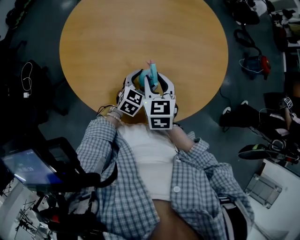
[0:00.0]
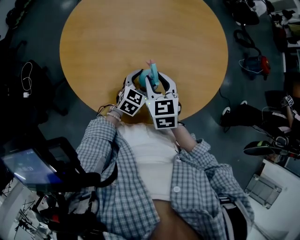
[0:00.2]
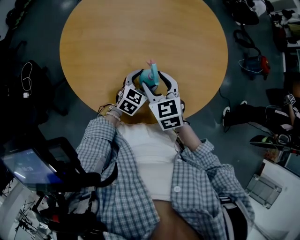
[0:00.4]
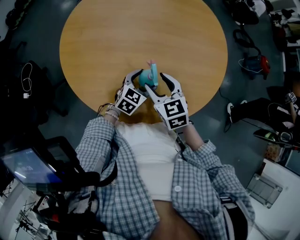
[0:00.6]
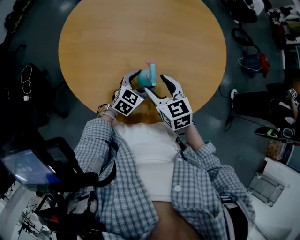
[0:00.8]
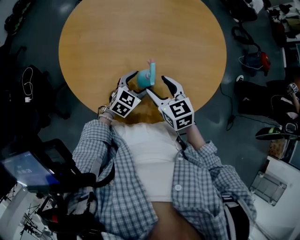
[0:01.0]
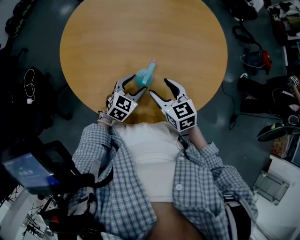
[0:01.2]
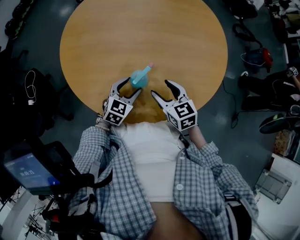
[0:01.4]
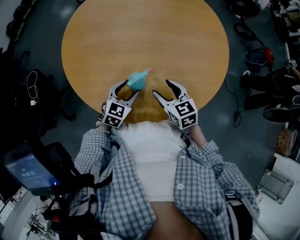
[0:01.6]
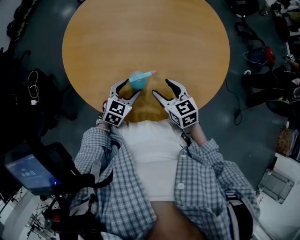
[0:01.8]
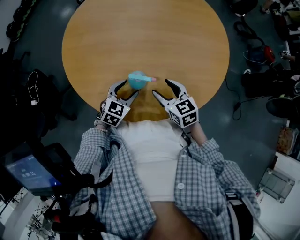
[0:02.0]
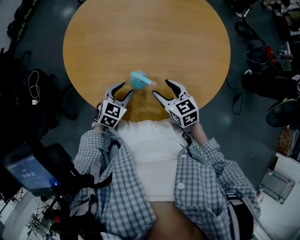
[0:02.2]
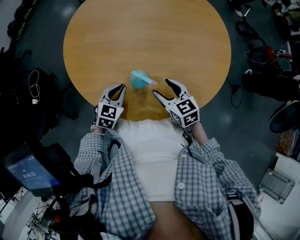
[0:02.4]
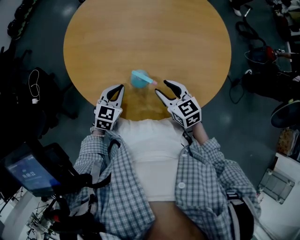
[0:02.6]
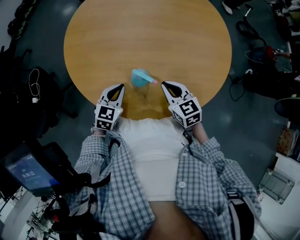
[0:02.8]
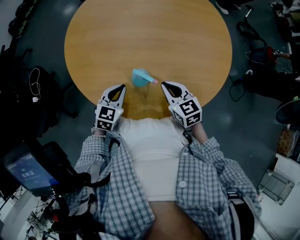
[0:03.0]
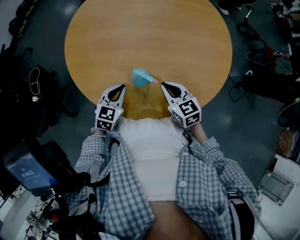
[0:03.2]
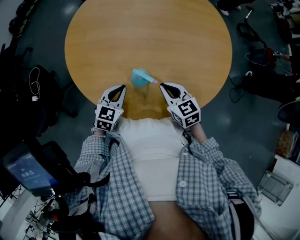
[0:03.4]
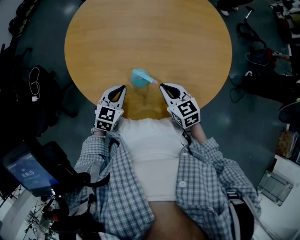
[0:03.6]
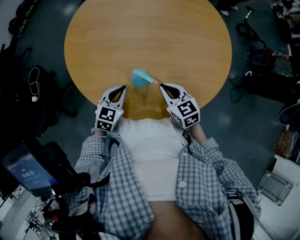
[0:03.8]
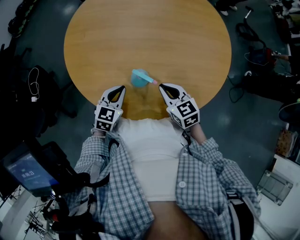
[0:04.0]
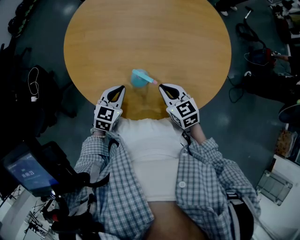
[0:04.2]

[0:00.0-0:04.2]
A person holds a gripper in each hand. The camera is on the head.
0:00.0 to 0:01.4: The left gripper shifts roughly 5 cm to the left, while the right gripper moves about 5 cm, and opens up.
0:01.4 to 0:02.8: The left gripper travels to the left by about 5 cm, and closes its fingers. Meanwhile the right gripper closes up.
0:02.8 to 0:04.2: Both grippers stay about where they are.

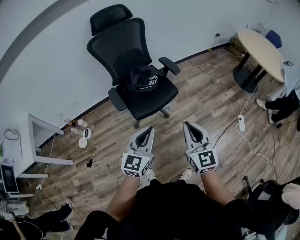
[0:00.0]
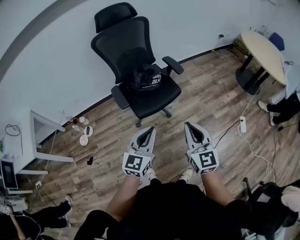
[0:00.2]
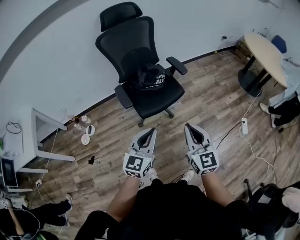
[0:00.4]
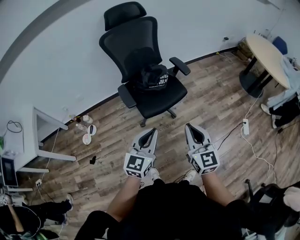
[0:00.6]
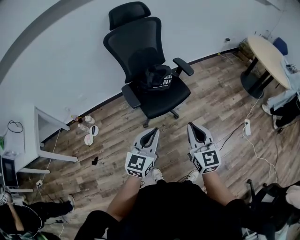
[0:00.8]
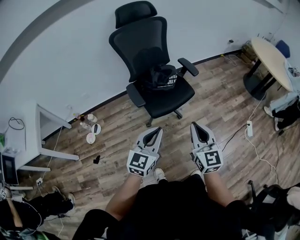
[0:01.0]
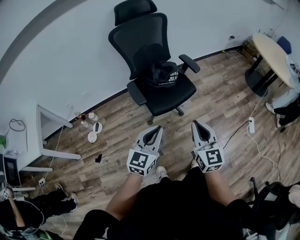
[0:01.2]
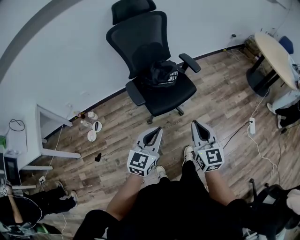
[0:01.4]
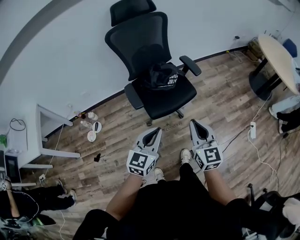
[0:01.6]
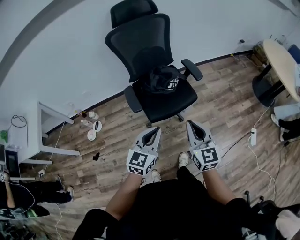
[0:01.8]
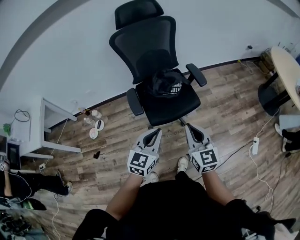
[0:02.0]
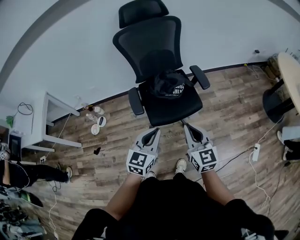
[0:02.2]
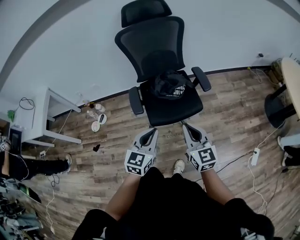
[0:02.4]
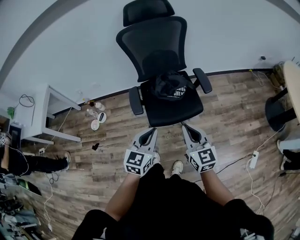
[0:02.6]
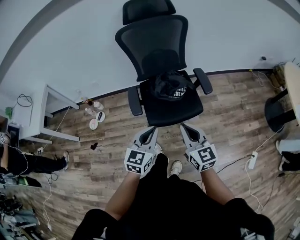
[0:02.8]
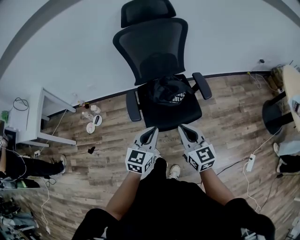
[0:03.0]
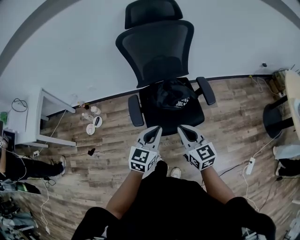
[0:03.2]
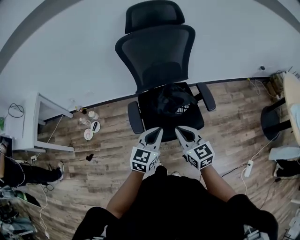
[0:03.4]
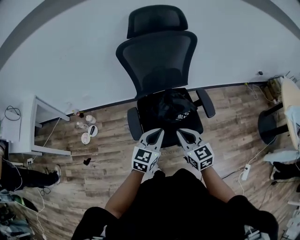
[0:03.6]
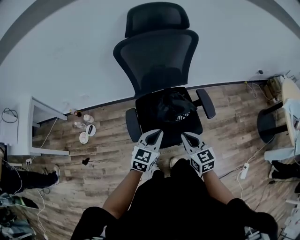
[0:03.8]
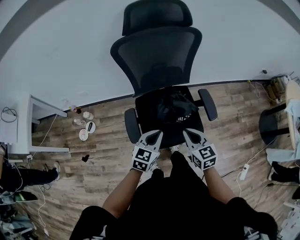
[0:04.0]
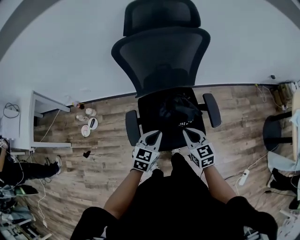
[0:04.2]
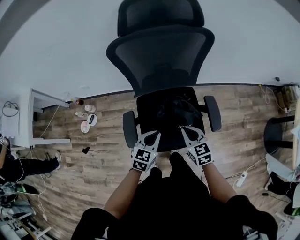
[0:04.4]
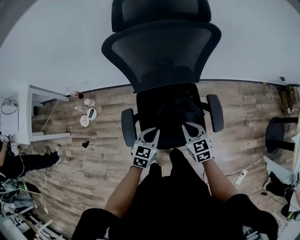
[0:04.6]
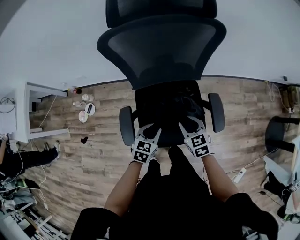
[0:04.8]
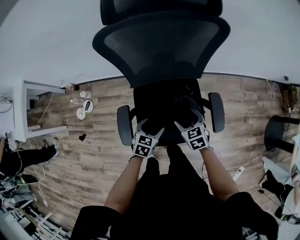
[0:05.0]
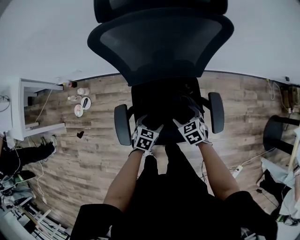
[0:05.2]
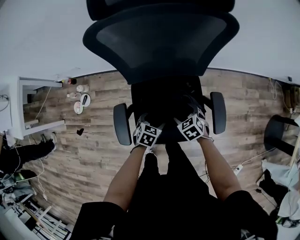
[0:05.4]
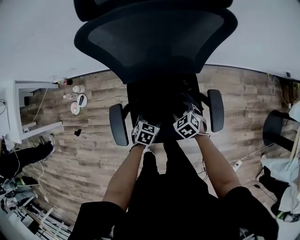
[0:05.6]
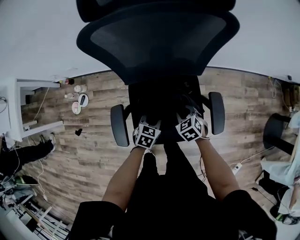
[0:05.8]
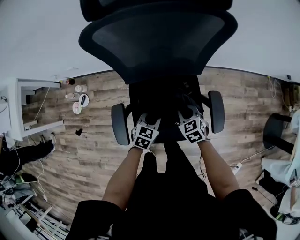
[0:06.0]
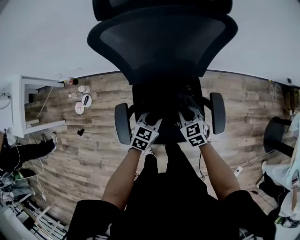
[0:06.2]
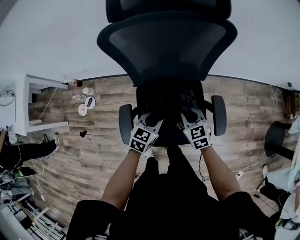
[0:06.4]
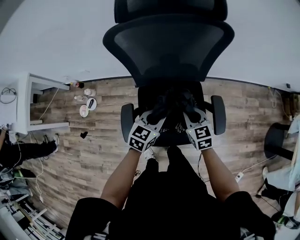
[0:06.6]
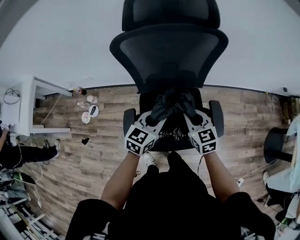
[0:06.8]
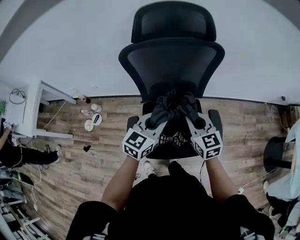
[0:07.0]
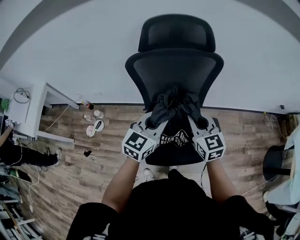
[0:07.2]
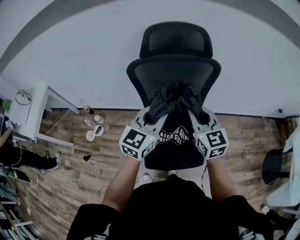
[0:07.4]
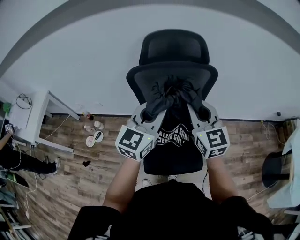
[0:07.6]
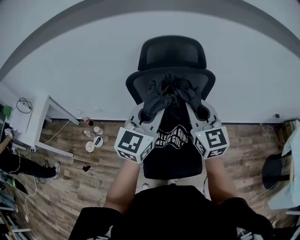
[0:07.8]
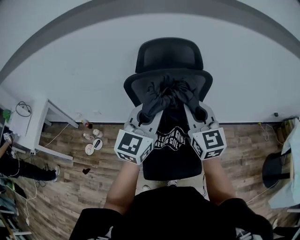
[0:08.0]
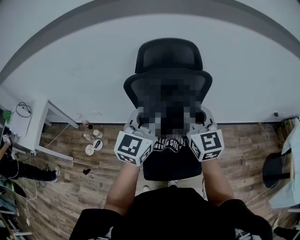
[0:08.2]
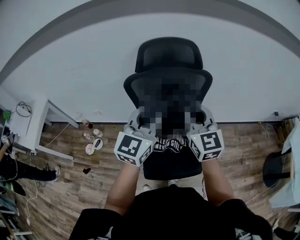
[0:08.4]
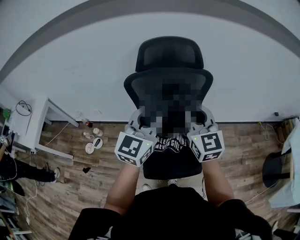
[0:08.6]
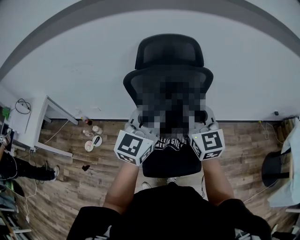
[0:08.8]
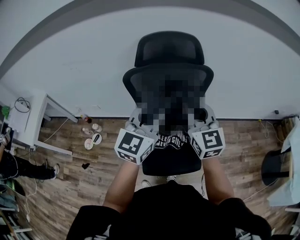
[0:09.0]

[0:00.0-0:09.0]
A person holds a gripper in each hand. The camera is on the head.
0:00.0 to 0:01.6: The left gripper shifts some 5 cm to the left. The right gripper shifts about 10 cm to the left and forward.
0:01.6 to 0:03.0: The grippers both shift forward by about 15 cm. The right gripper rotates some 30 degrees.
0:03.0 to 0:04.4: The grippers both shift forward and downward by about 25 cm. The right gripper swivels about 20 degrees.
0:04.4 to 0:06.0: Both grippers travel together downward and forward, about 15 cm. The right gripper swivels roughly 20 degrees, and opens, then closes once more; the left gripper opens and closes again.
0:06.0 to 0:07.6: The grippers both shift upward by some 40 cm. The right gripper tips its fingers upward by approximately 50 degrees. Meanwhile the left gripper tilts its fingers about 40 degrees upward.
0:07.6 to 0:09.0: The grippers make only small movements.

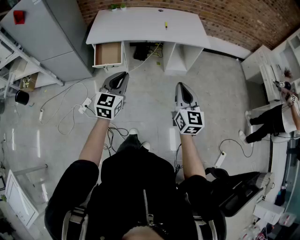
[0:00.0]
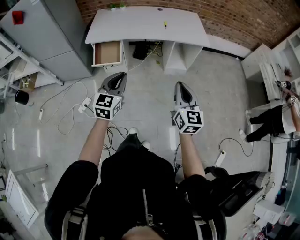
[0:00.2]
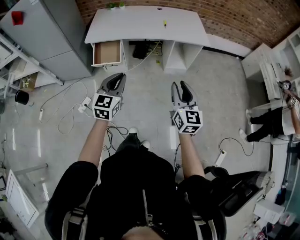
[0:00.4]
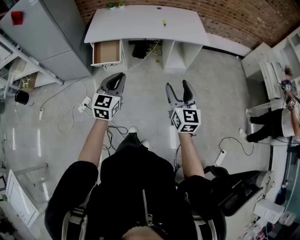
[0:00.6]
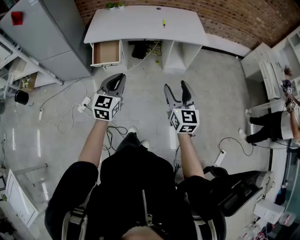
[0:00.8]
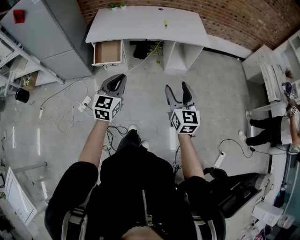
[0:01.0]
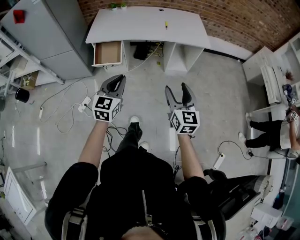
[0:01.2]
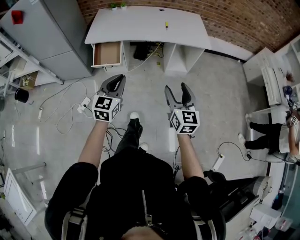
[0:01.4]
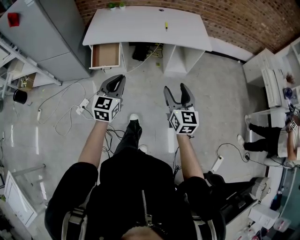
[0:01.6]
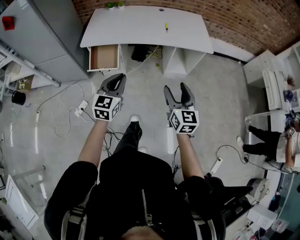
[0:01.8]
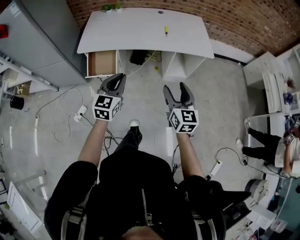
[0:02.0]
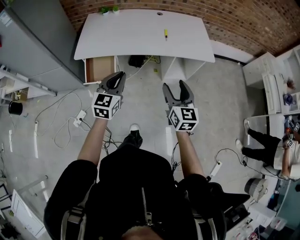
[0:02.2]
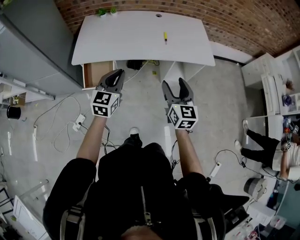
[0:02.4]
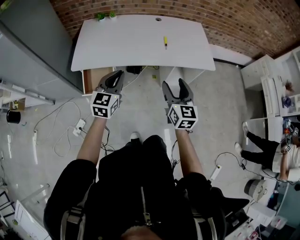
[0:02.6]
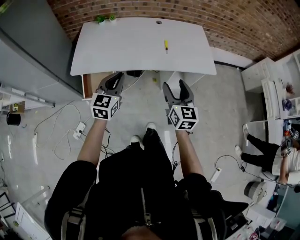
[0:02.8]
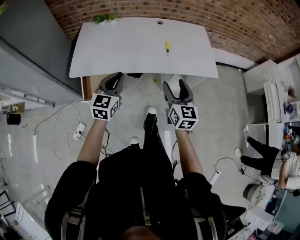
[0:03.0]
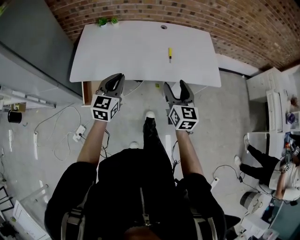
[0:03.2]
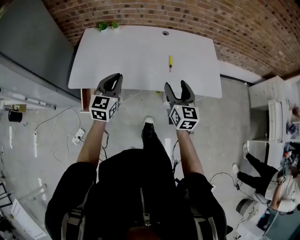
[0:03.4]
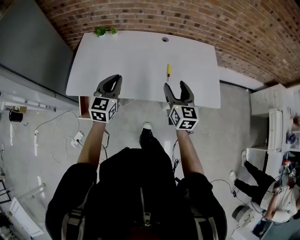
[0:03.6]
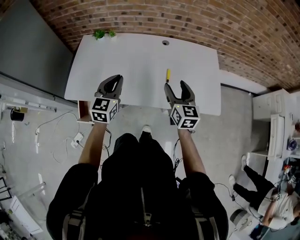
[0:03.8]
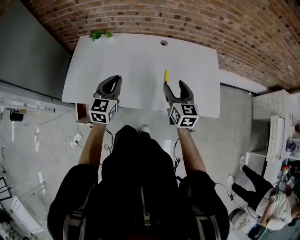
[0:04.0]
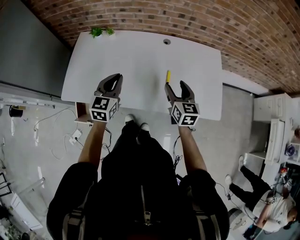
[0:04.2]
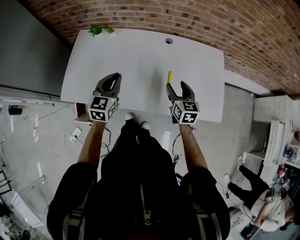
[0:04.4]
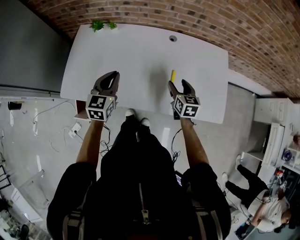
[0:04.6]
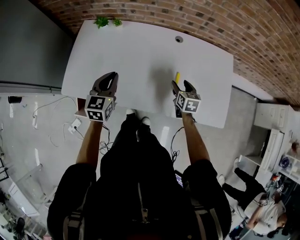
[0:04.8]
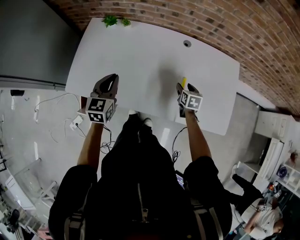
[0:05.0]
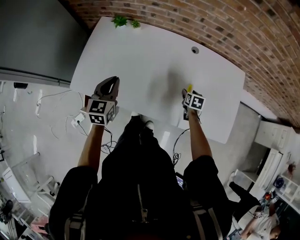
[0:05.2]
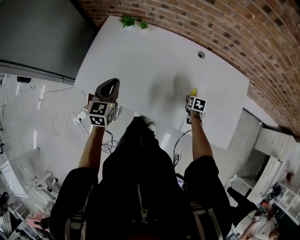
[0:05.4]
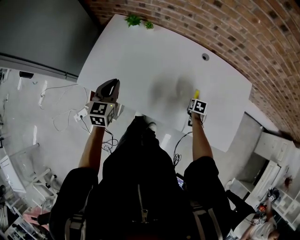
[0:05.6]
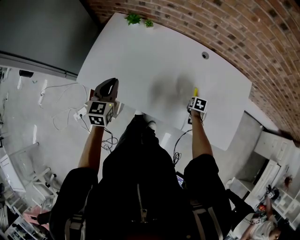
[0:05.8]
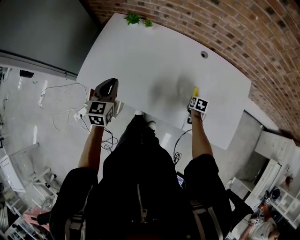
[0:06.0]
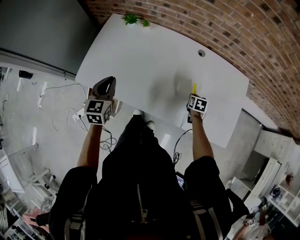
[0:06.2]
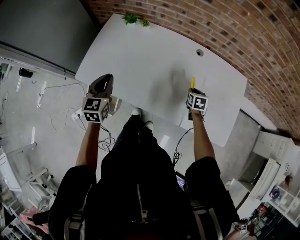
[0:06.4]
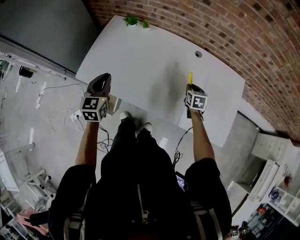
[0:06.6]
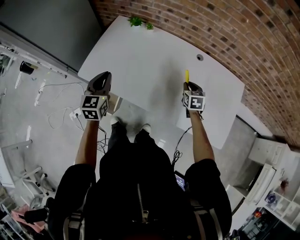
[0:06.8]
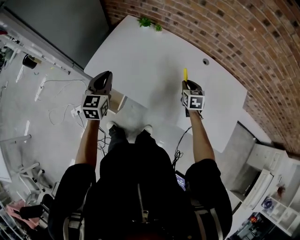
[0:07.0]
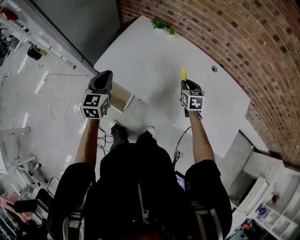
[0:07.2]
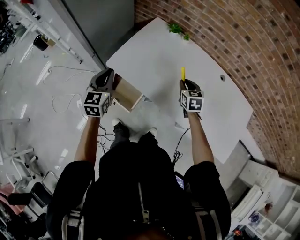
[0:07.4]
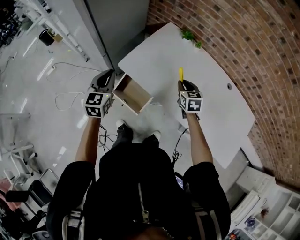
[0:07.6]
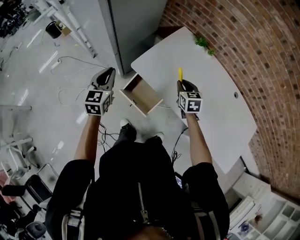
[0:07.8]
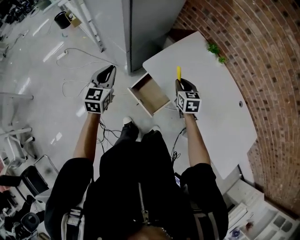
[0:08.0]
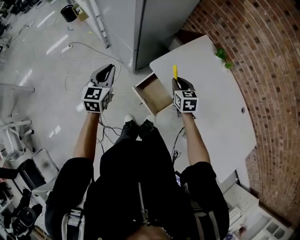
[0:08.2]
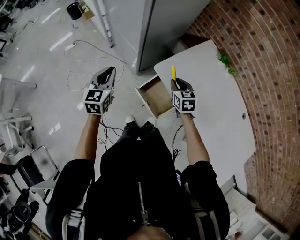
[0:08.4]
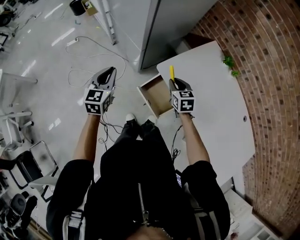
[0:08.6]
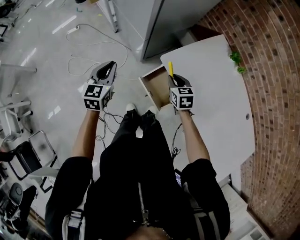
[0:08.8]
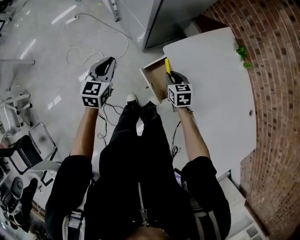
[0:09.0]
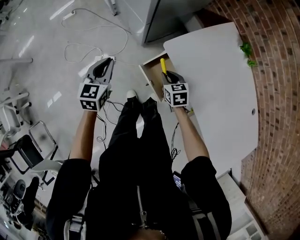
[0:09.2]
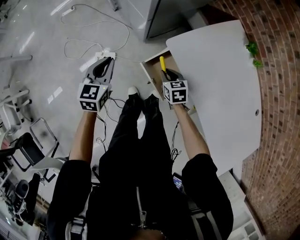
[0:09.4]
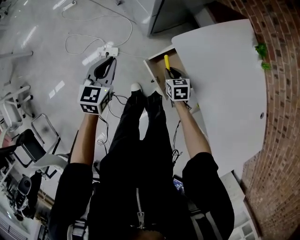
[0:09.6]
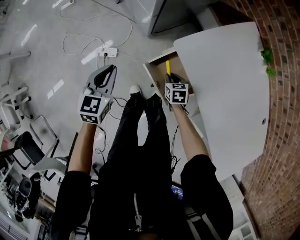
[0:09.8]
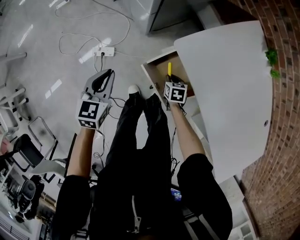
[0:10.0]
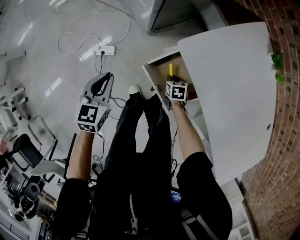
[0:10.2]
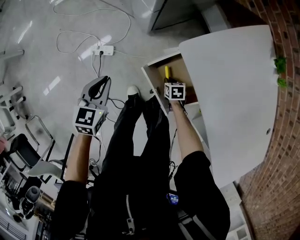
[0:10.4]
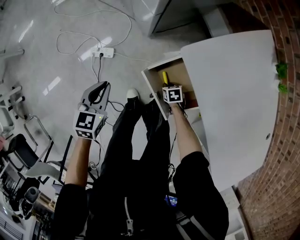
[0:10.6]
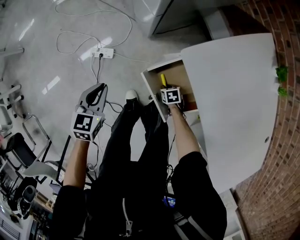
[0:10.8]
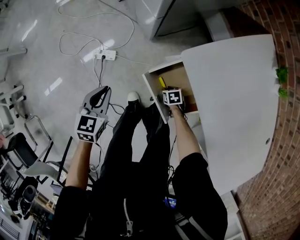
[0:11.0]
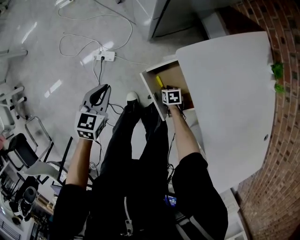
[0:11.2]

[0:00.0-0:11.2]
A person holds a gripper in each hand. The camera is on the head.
0:00.0 to 0:01.6: Both grippers move forward, some 5 cm. The right gripper opens up.
0:01.6 to 0:03.2: Both grippers travel together forward, approximately 40 cm.
0:03.2 to 0:04.8: The right gripper is displaced forward and downward by about 35 cm, and rotates some 30 degrees. Meanwhile the left gripper heads forward, covering roughly 25 cm.
0:04.8 to 0:06.4: The left gripper is displaced to the left by about 10 cm, while the right gripper moves downward, about 5 cm, and closes.
0:06.4 to 0:08.0: The two grippers travel together, roughly 50 cm. The right gripper rotates some 40 degrees, while the left gripper changes its angle by about 20 degrees.
0:08.0 to 0:09.6: The left gripper shifts roughly 15 cm downward and to the left; the right gripper heads downward and to the left, covering roughly 25 cm, and changes its angle by approximately 30 degrees.
0:09.6 to 0:11.2: The left gripper shifts about 15 cm downward, while the right gripper shifts roughly 25 cm downward, and swivels roughly 20 degrees.
